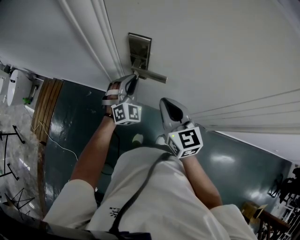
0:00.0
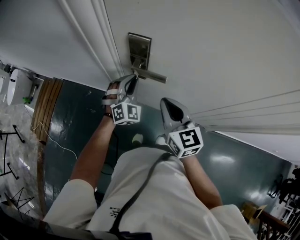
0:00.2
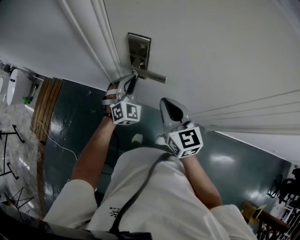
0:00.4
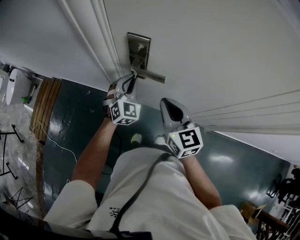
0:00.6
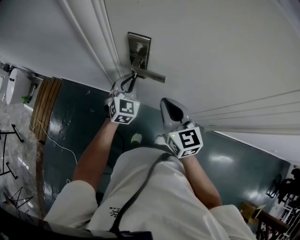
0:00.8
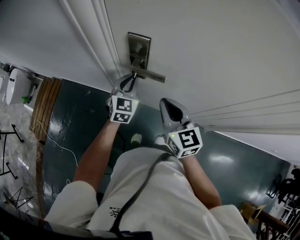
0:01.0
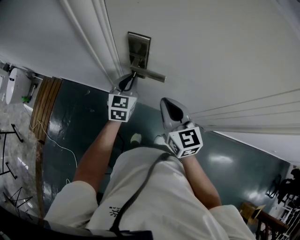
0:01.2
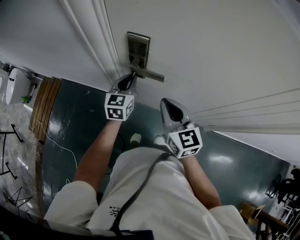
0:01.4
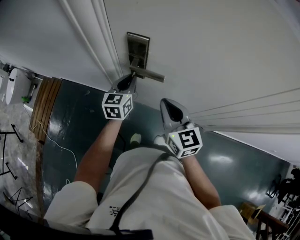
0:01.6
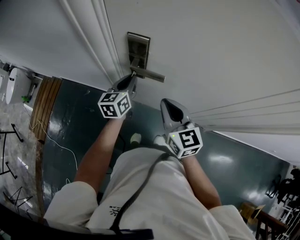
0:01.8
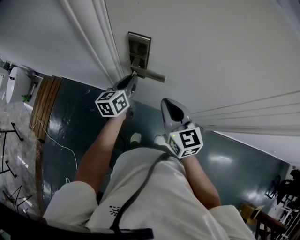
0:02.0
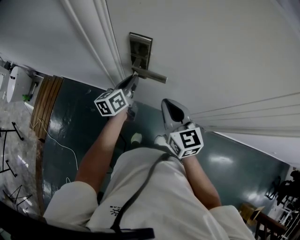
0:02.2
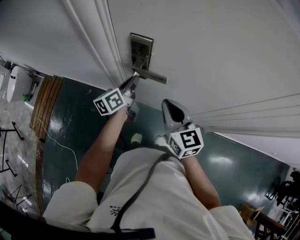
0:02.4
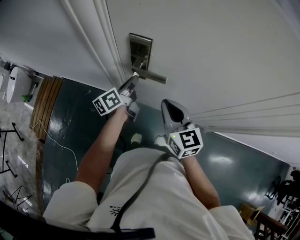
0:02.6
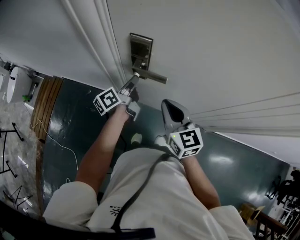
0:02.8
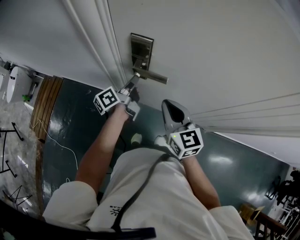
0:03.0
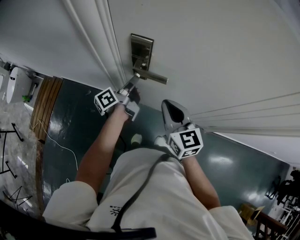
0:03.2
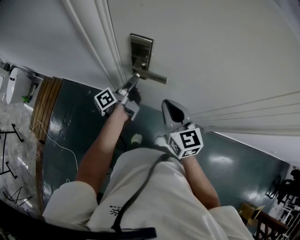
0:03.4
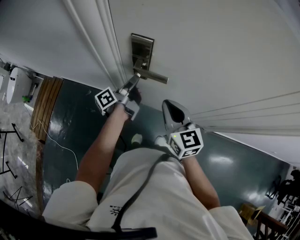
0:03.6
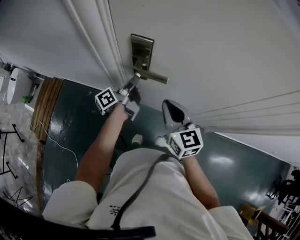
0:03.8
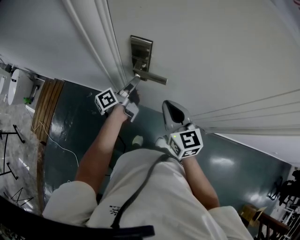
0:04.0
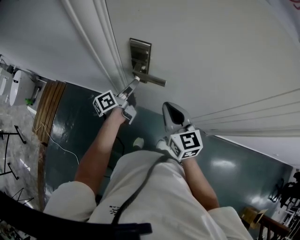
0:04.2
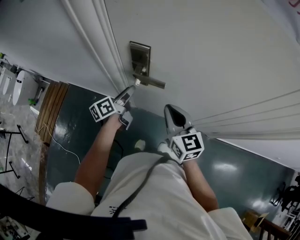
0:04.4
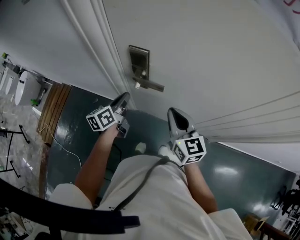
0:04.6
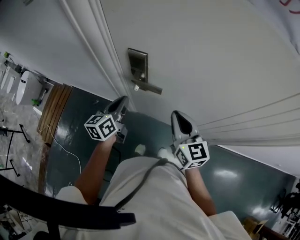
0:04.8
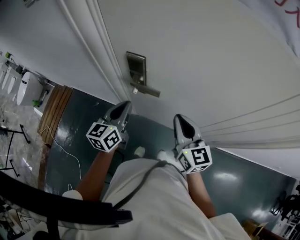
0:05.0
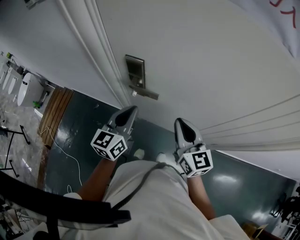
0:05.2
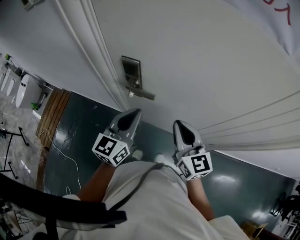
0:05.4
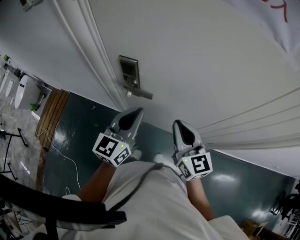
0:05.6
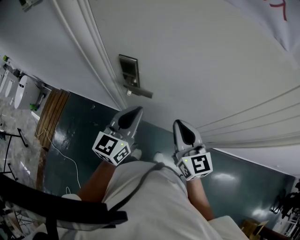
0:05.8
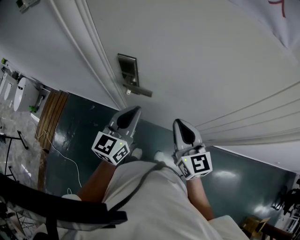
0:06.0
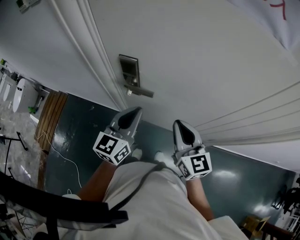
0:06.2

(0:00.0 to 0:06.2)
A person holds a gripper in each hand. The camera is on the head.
0:00.0 - 0:01.6: The left gripper twists some 60 degrees counterclockwise, seen from behind.
0:01.6 - 0:03.2: The left gripper twists about 60 degrees counterclockwise, seen from behind.
0:03.2 - 0:04.6: The left gripper shifts by roughly 5 cm, swivels roughly 40 degrees, and opens, then closes again.
0:04.6 - 0:06.2: The left gripper heads upward, to the right and backward, covering roughly 20 cm, and turns by roughly 40 degrees. The right gripper heads to the right and upward, covering about 5 cm.

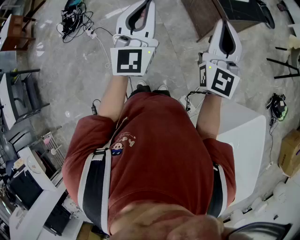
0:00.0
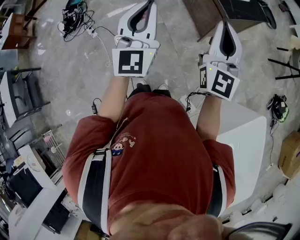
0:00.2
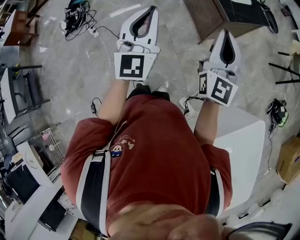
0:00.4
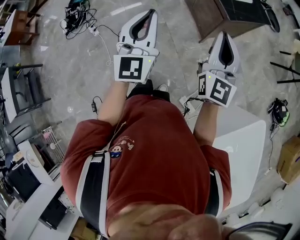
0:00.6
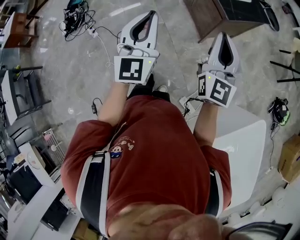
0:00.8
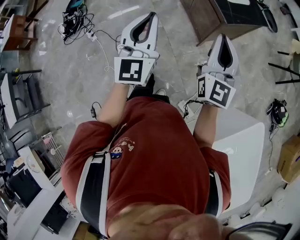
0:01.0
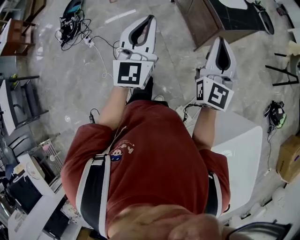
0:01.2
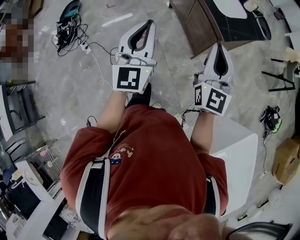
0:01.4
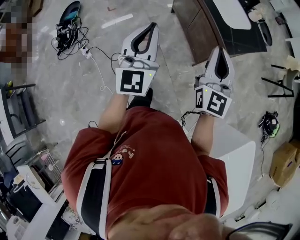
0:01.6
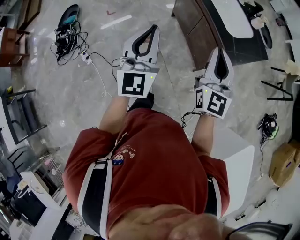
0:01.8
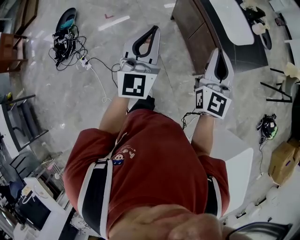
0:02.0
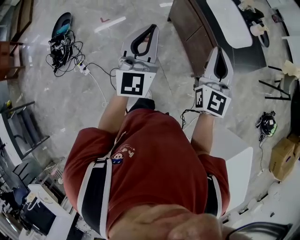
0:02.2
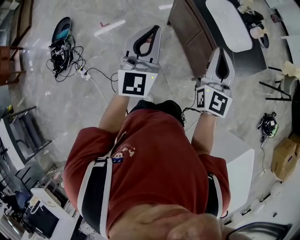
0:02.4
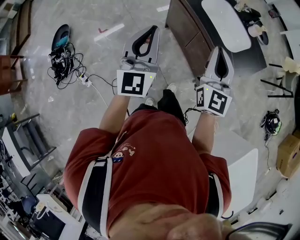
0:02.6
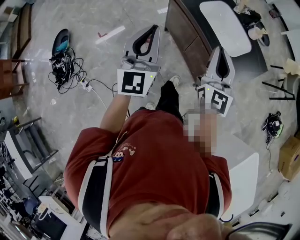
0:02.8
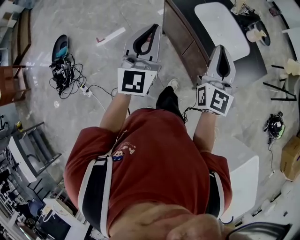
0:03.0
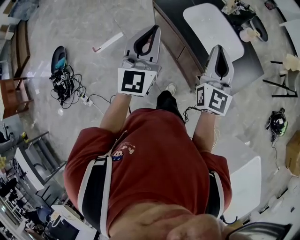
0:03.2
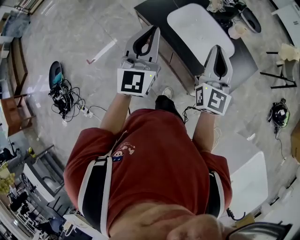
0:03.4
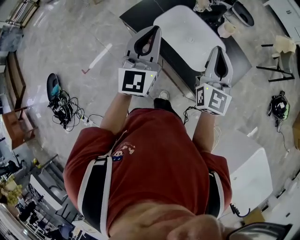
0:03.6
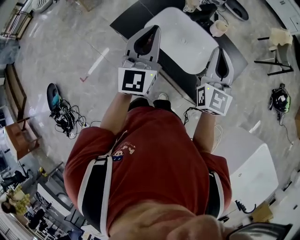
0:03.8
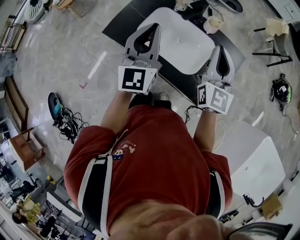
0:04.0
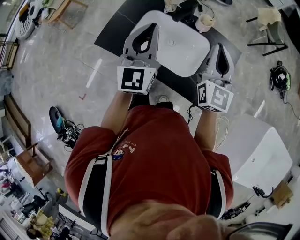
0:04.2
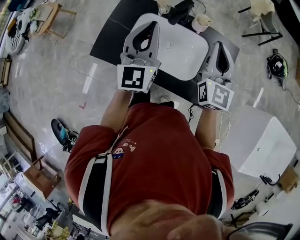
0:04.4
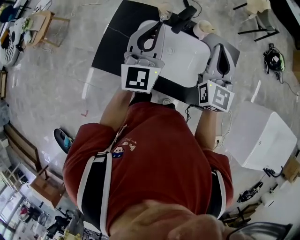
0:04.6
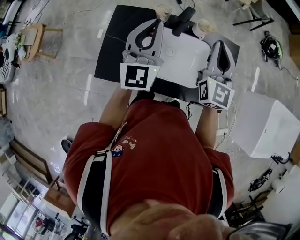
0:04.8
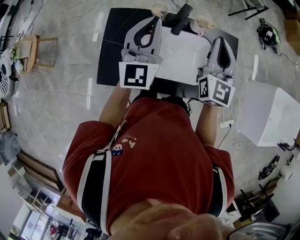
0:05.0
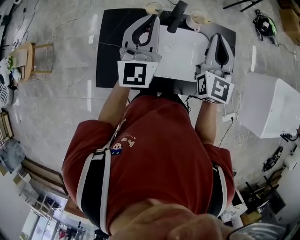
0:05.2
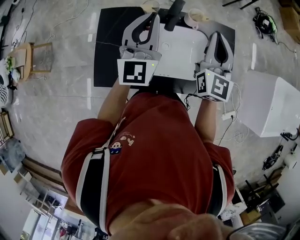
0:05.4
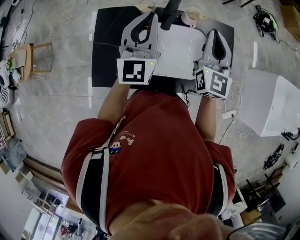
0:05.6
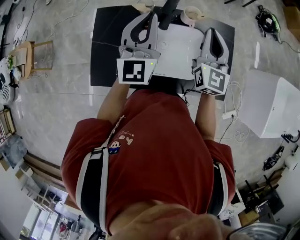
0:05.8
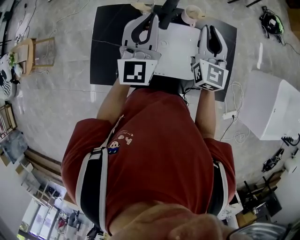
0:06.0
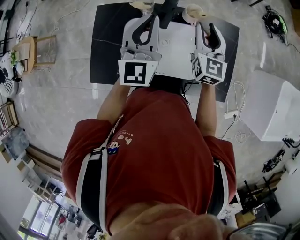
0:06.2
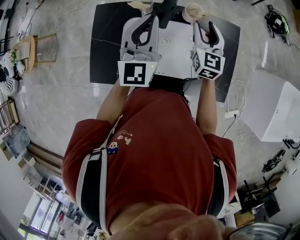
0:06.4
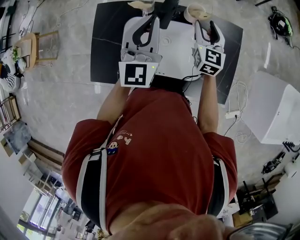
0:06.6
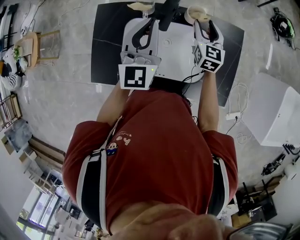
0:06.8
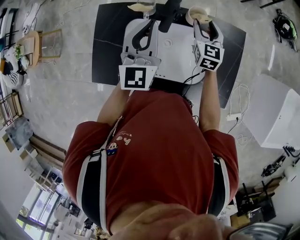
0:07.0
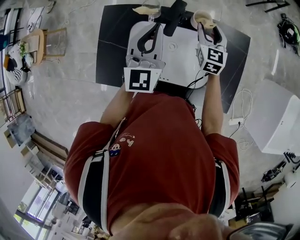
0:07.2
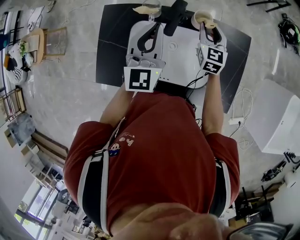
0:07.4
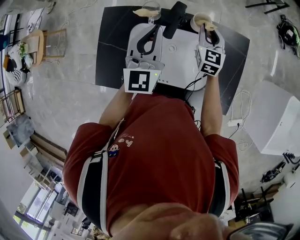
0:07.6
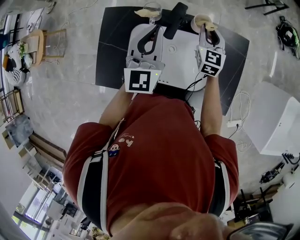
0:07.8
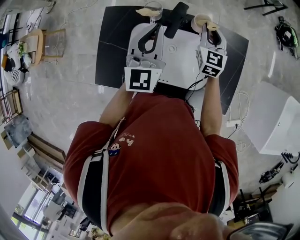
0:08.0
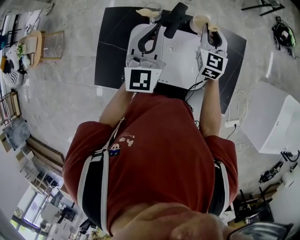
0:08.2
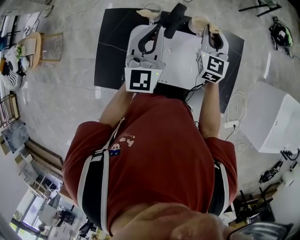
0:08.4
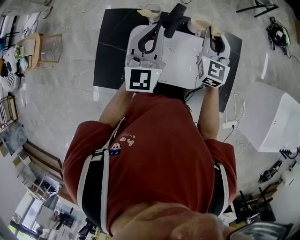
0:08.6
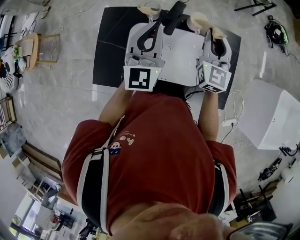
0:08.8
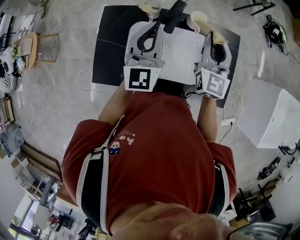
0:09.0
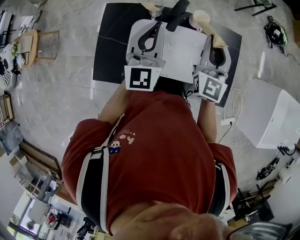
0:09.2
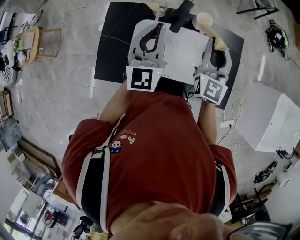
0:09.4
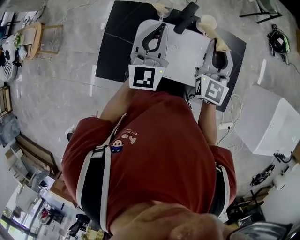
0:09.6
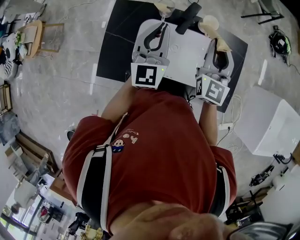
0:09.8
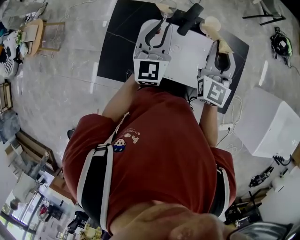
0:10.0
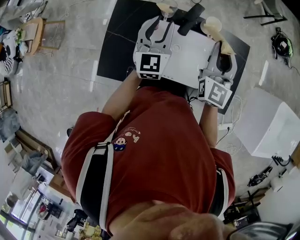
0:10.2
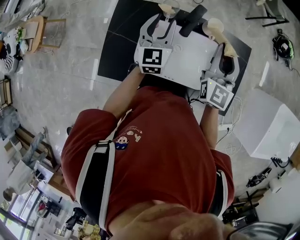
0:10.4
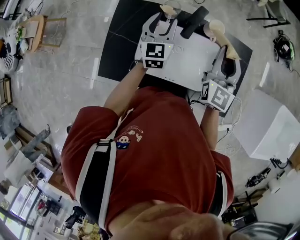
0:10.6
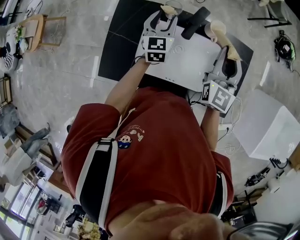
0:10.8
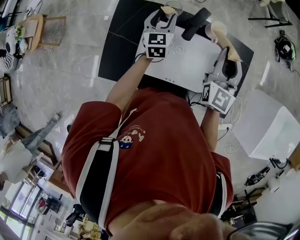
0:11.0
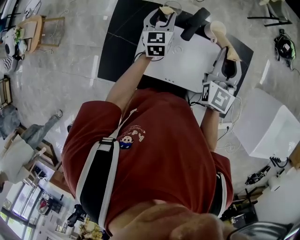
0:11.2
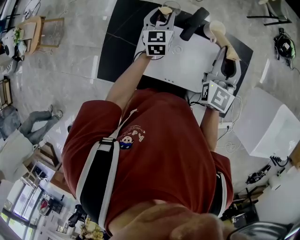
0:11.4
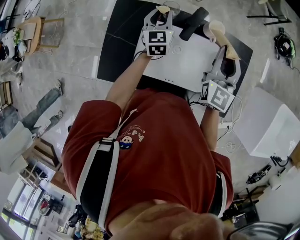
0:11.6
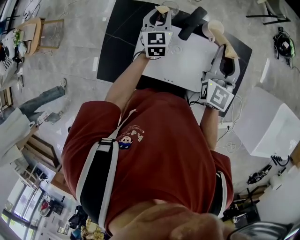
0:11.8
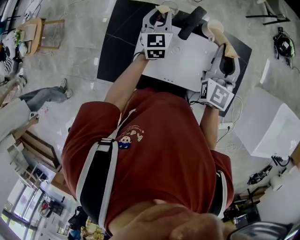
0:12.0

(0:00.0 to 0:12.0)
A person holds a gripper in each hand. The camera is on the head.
0:00.0 - 0:01.6: The grippers both shift forward by approximately 15 cm.
0:01.6 - 0:03.0: The grippers both shift forward by about 30 cm.
0:03.0 - 0:04.4: The right gripper moves approximately 30 cm, and turns by roughly 30 degrees. Meanwhile the left gripper changes place by roughly 40 cm, and rotates about 40 degrees.
0:04.4 - 0:06.0: The left gripper goes some 10 cm forward, while the right gripper heads forward and downward, covering approximately 10 cm.
0:06.0 - 0:07.6: The left gripper goes approximately 5 cm downward; the right gripper is displaced downward and forward by about 15 cm, and opens, then closes again.
0:07.6 - 0:09.0: The left gripper changes place by about 5 cm. Meanwhile the right gripper moves upward and backward, roughly 20 cm, and rotates roughly 20 degrees.
0:09.0 - 0:10.4: The left gripper goes some 10 cm downward and forward, and opens up.
0:10.4 - 0:12.0: The left gripper shifts approximately 5 cm forward.

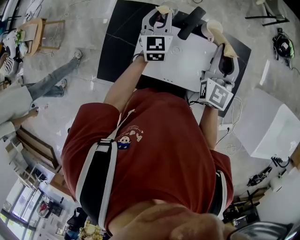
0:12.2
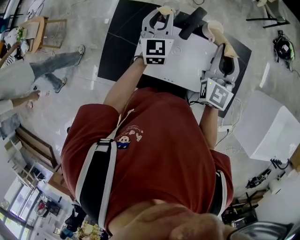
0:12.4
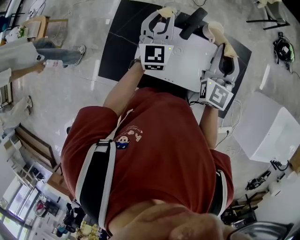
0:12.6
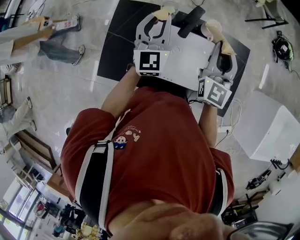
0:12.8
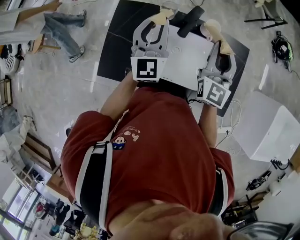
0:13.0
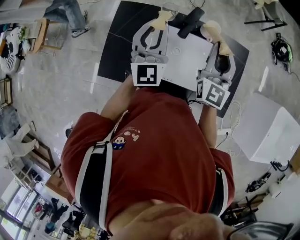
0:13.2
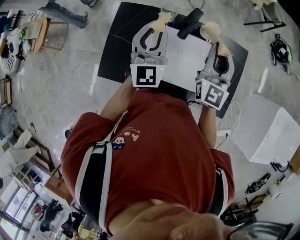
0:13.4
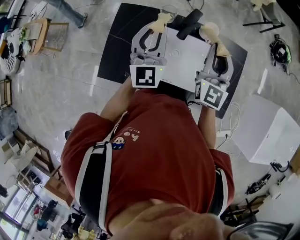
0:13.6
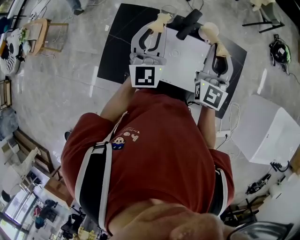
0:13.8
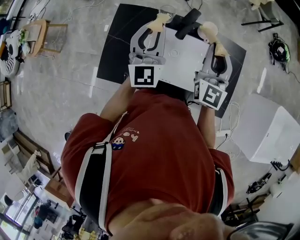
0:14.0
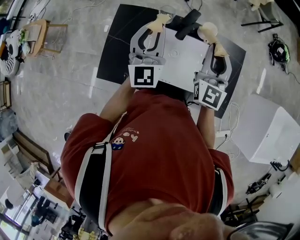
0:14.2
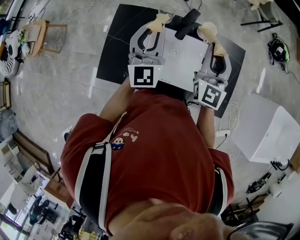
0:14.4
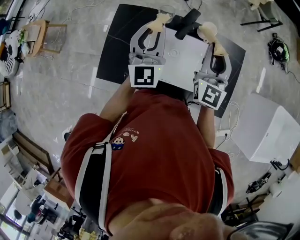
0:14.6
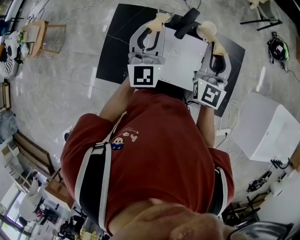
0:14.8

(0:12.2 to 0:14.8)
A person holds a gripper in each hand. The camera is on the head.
0:12.2 - 0:13.4: The left gripper travels upward and backward by some 15 cm.
0:13.4 - 0:14.8: Both grippers stay about where they are.

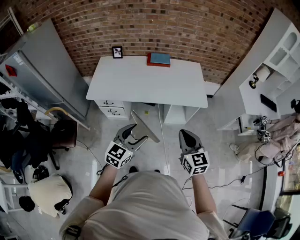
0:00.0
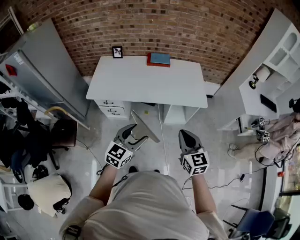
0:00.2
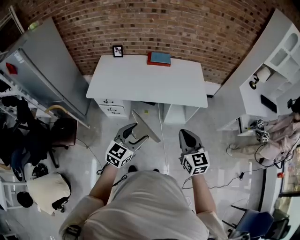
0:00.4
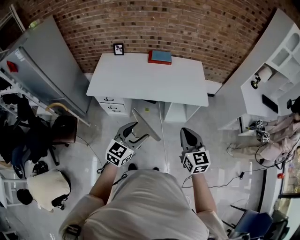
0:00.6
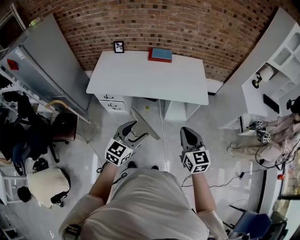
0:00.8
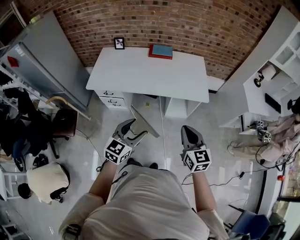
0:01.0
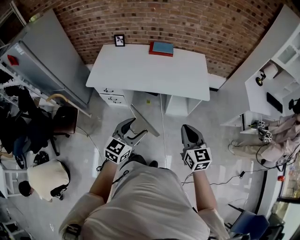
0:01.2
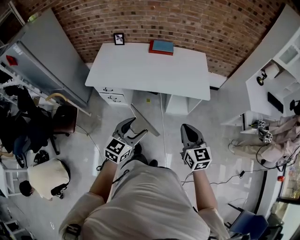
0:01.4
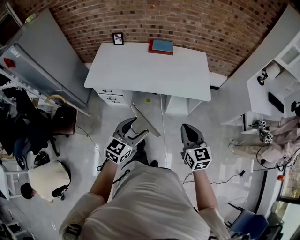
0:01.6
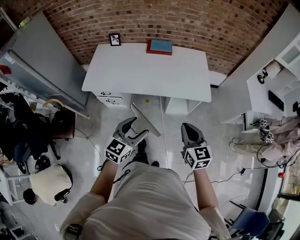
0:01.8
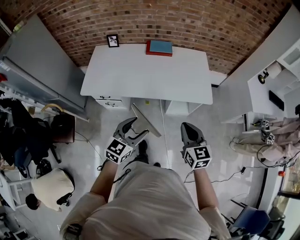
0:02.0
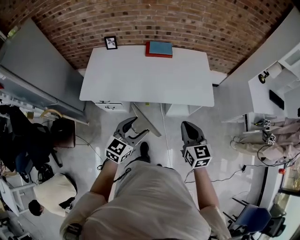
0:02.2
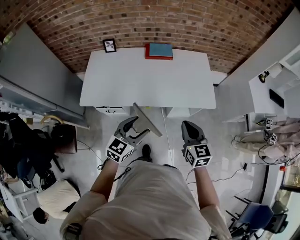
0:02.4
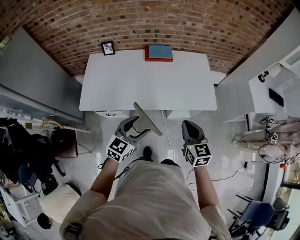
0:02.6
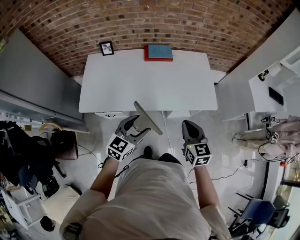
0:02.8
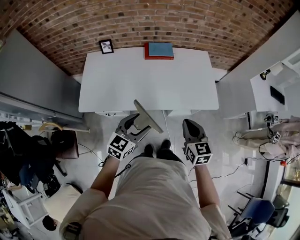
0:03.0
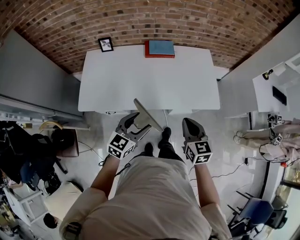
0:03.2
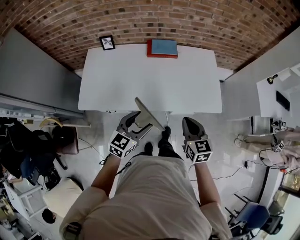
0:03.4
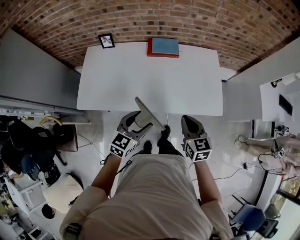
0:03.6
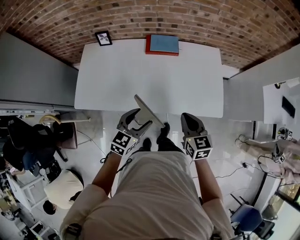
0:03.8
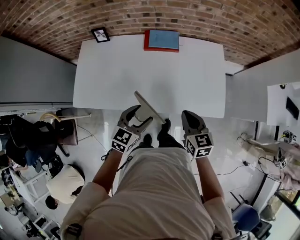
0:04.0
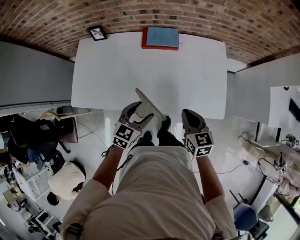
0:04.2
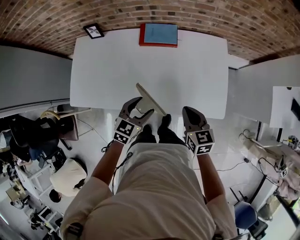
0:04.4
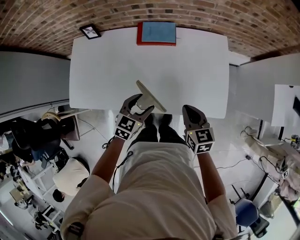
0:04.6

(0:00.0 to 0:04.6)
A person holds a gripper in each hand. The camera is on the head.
0:00.0 - 0:01.6: The two grippers go roughly 5 cm to the right.
0:01.6 - 0:03.0: The grippers both shift forward and to the left by some 25 cm.
0:03.0 - 0:04.6: The two grippers go roughly 30 cm forward and downward.
